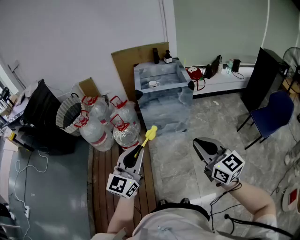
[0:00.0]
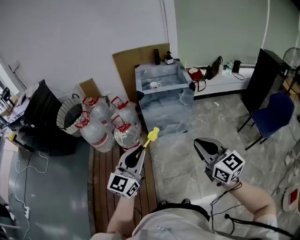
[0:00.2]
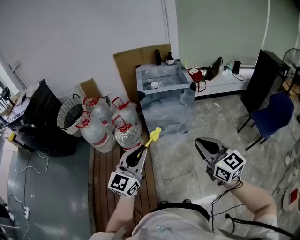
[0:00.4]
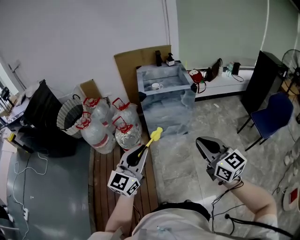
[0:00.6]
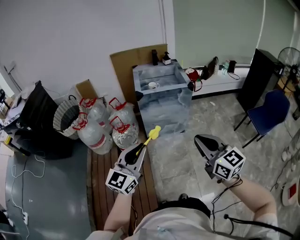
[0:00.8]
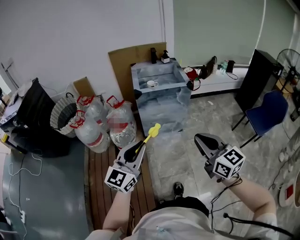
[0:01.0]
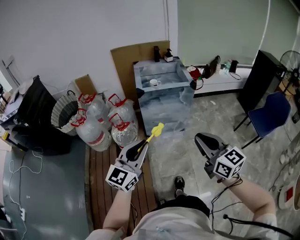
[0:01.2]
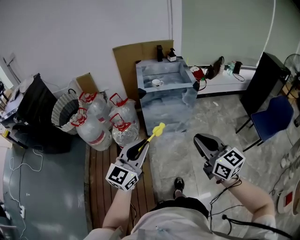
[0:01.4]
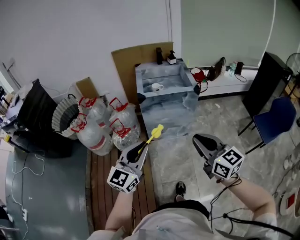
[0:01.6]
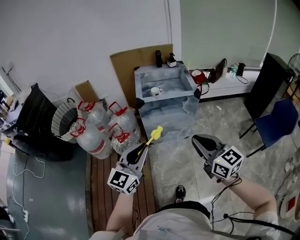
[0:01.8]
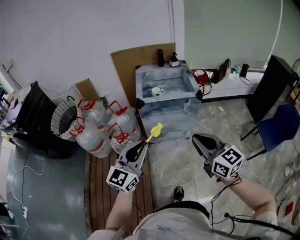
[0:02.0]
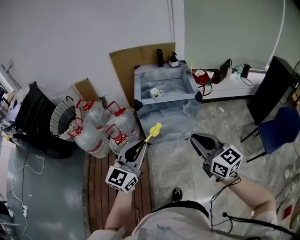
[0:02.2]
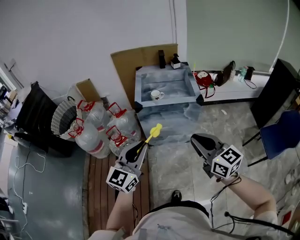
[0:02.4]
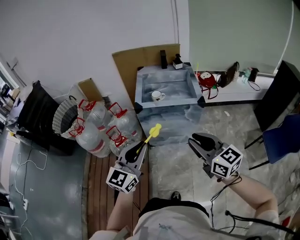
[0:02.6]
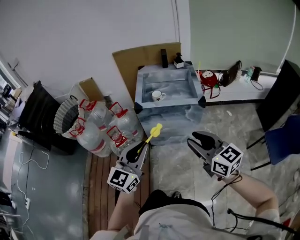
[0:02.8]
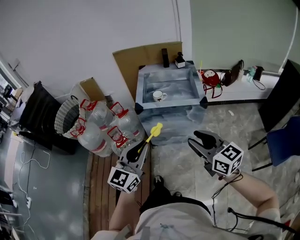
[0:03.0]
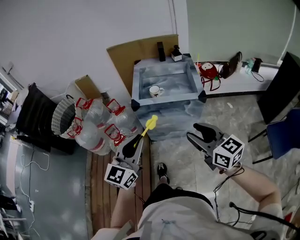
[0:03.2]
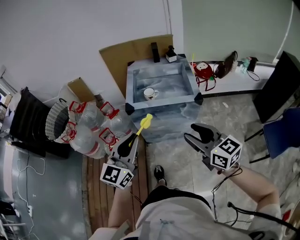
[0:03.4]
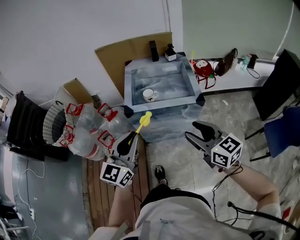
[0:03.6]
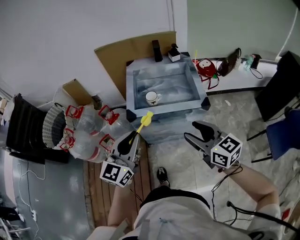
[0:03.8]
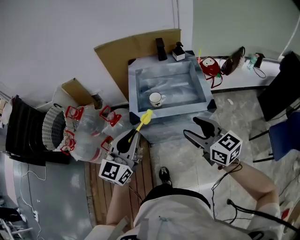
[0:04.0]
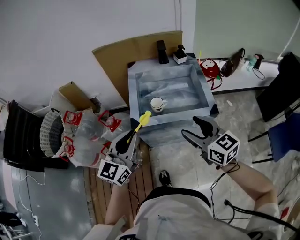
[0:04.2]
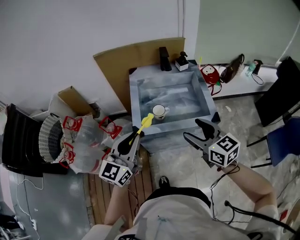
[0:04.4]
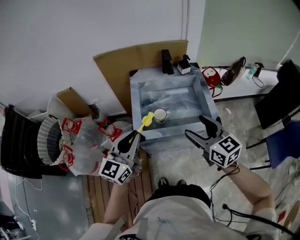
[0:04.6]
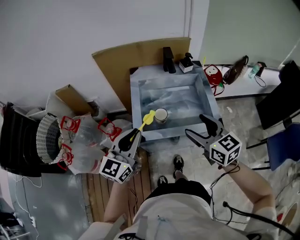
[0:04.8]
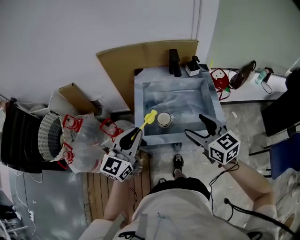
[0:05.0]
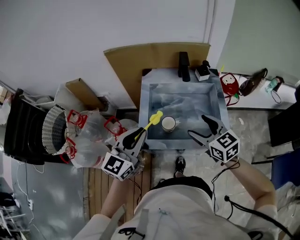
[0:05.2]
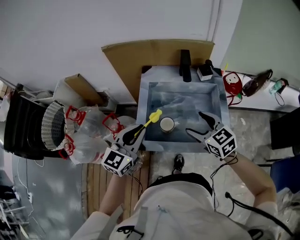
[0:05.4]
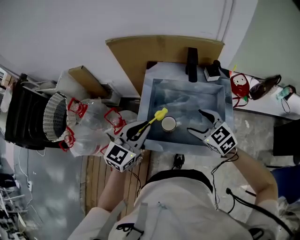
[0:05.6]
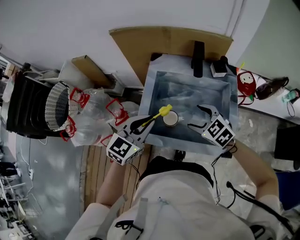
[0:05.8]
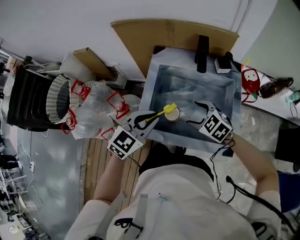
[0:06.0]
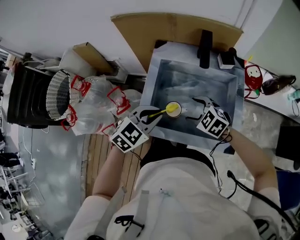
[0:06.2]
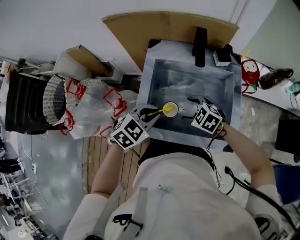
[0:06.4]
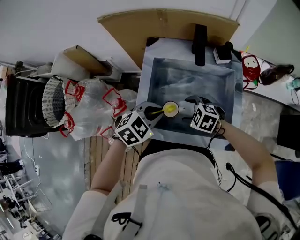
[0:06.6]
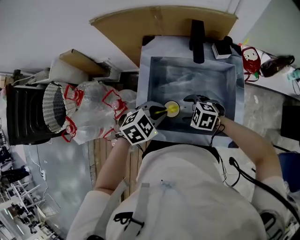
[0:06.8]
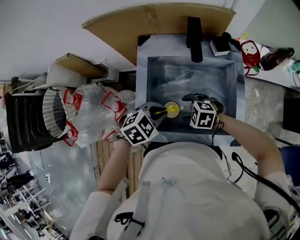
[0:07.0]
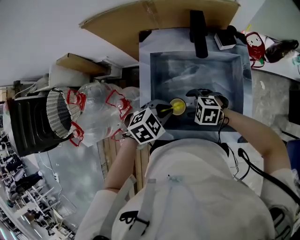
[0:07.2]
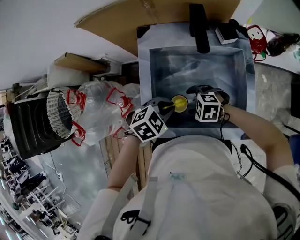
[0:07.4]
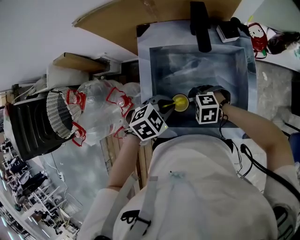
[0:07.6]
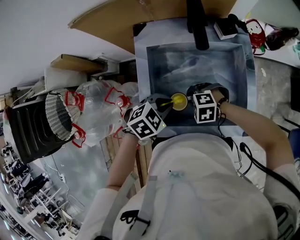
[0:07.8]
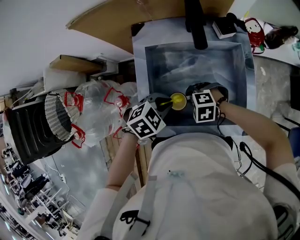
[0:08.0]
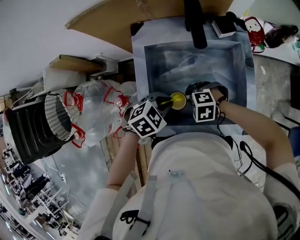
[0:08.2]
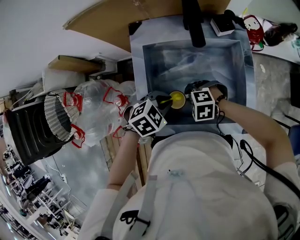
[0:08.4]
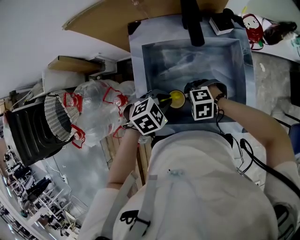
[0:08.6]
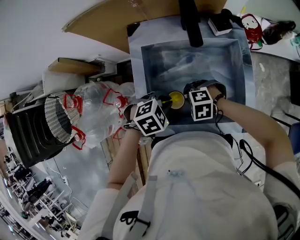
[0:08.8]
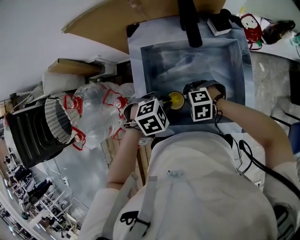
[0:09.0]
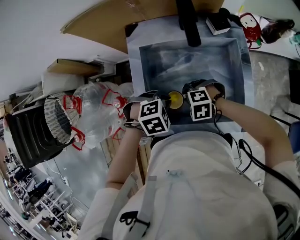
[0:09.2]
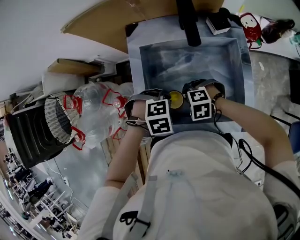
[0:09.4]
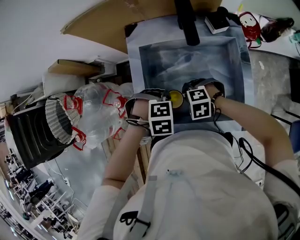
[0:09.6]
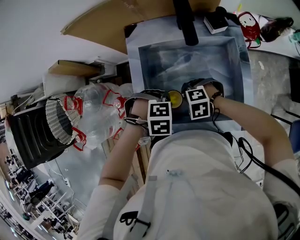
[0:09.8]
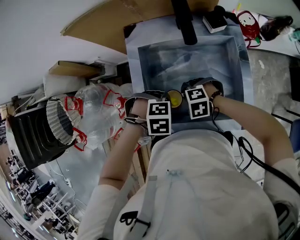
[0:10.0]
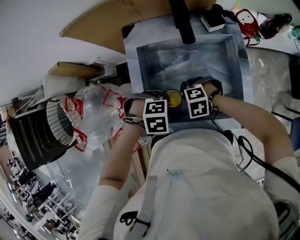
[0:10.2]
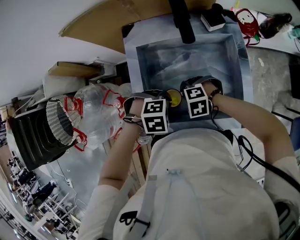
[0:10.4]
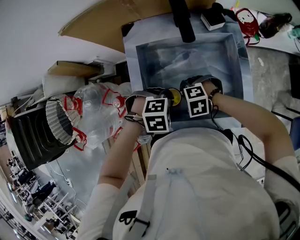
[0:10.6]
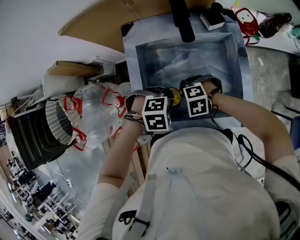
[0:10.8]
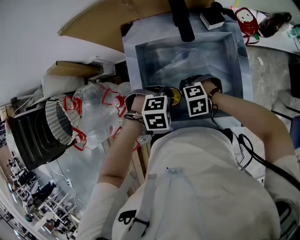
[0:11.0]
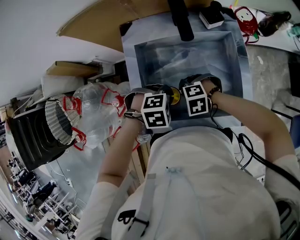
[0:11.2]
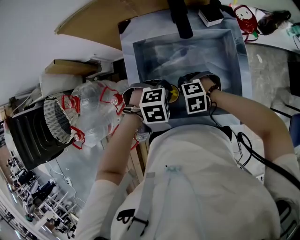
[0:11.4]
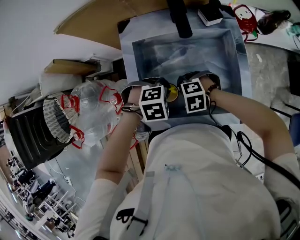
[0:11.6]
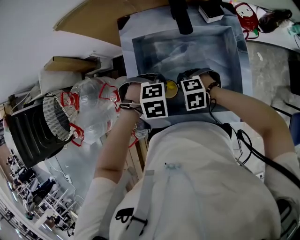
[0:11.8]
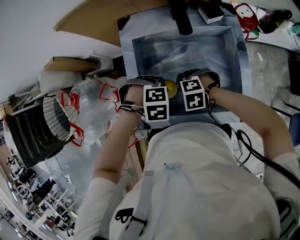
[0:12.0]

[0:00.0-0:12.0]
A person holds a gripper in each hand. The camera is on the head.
0.0 to 1.6 s: The two grippers go roughly 10 cm forward.
1.6 to 3.0 s: The grippers both shift forward and to the right by some 20 cm. The right gripper opens.
3.0 to 4.4 s: Both grippers travel together forward, about 25 cm. The right gripper opens up.
4.4 to 6.0 s: The right gripper heads forward and downward, covering approximately 25 cm, and tips its fingers downward by approximately 30 degrees. The left gripper heads forward, downward and to the right, covering about 20 cm, and rotates roughly 30 degrees.
6.0 to 7.6 s: The grippers both shift downward by some 15 cm. The left gripper tips its fingers downward by roughly 30 degrees. Meanwhile the right gripper changes its angle by some 30 degrees, and closes.
7.6 to 9.0 s: The grippers stay close to where they were, moving slightly.
10.4 to 12.0 s: There are only small adjustments of the grippers.

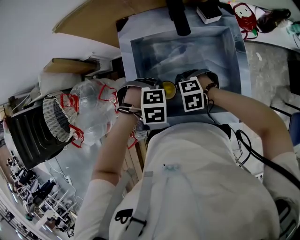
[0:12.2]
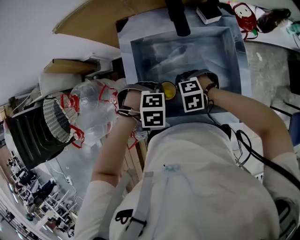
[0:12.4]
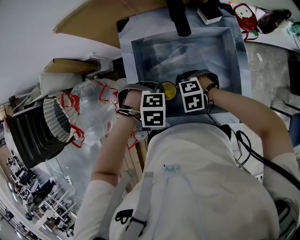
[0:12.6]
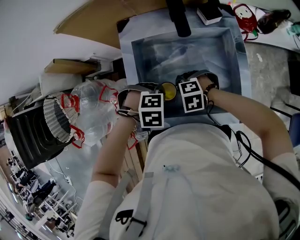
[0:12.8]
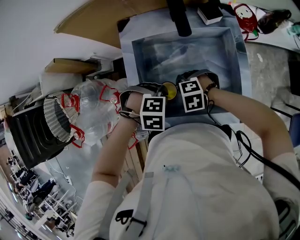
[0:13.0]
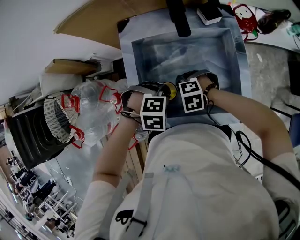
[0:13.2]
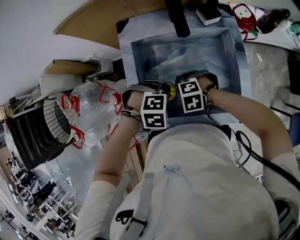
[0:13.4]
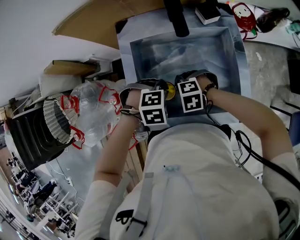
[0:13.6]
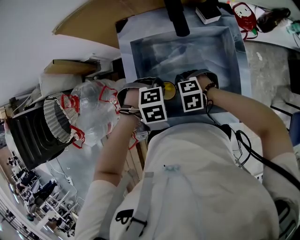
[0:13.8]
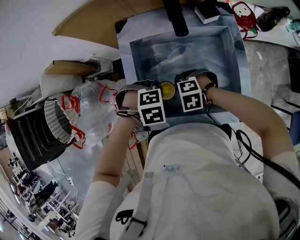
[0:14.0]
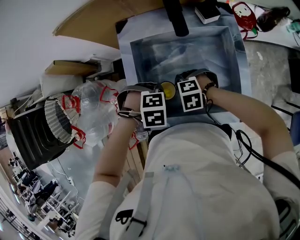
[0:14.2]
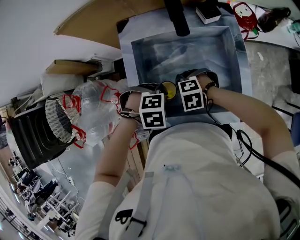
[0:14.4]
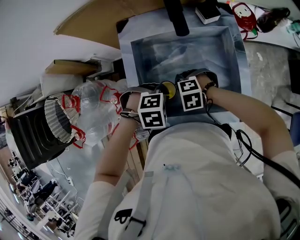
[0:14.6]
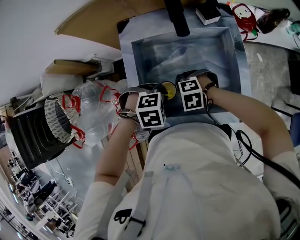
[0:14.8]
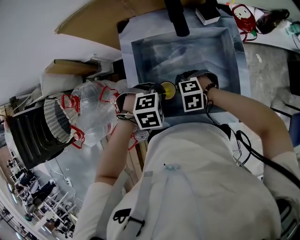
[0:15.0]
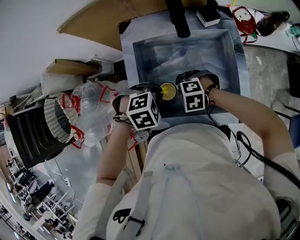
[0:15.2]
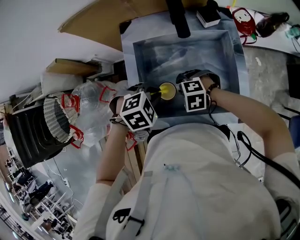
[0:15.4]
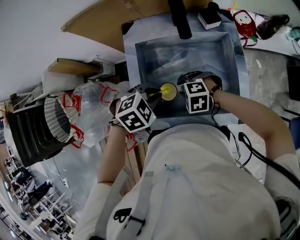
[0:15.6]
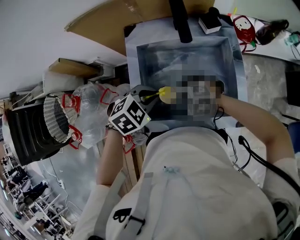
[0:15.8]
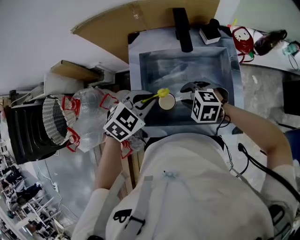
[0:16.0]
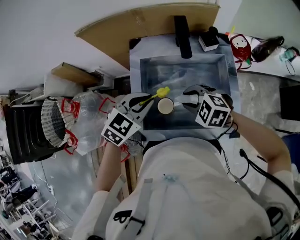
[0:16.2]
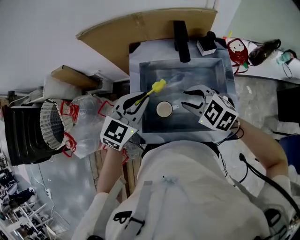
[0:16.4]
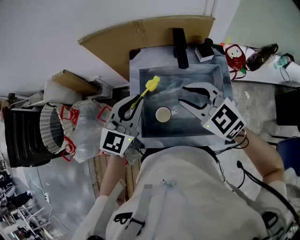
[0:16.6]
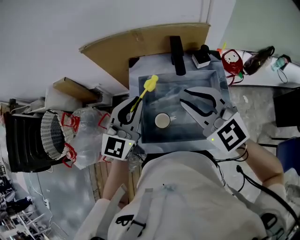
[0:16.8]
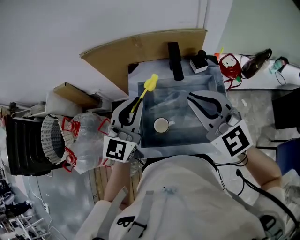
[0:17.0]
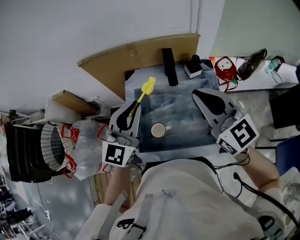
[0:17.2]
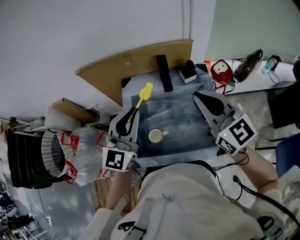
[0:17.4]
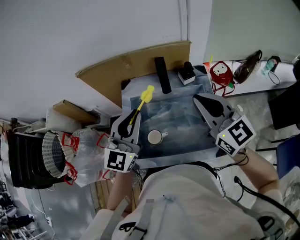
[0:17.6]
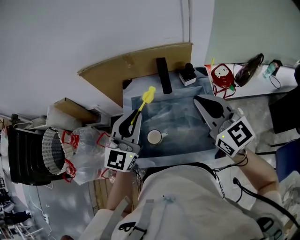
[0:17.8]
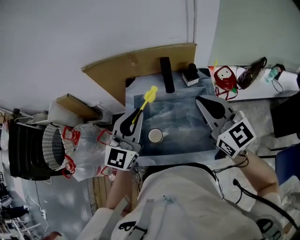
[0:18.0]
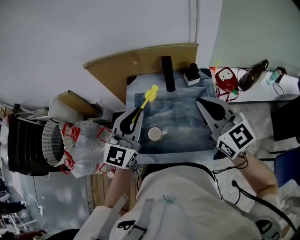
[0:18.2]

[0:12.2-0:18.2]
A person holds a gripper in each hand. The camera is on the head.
12.2 to 15.2 s: The grippers move only a little.
15.2 to 16.6 s: Both grippers move upward, some 25 cm. The left gripper tips its fingers upward by about 60 degrees. Meanwhile the right gripper points its fingers roughly 40 degrees further upward.
16.6 to 18.2 s: The right gripper heads to the right and upward, covering roughly 15 cm, changes its angle by some 30 degrees, and closes its fingers, while the left gripper goes approximately 5 cm upward.

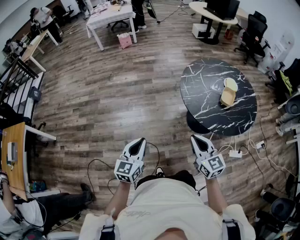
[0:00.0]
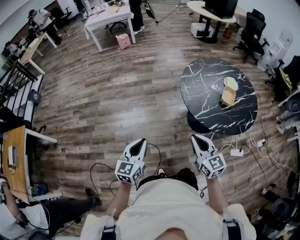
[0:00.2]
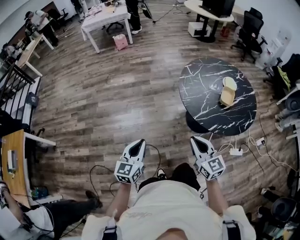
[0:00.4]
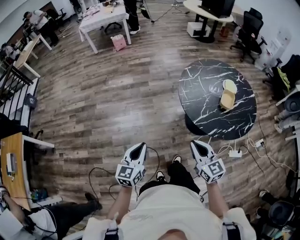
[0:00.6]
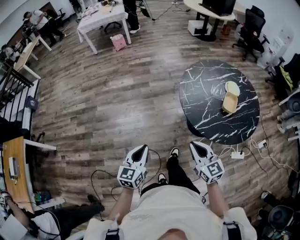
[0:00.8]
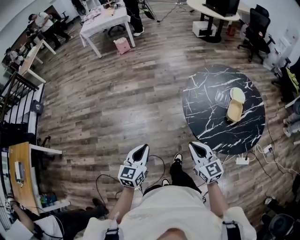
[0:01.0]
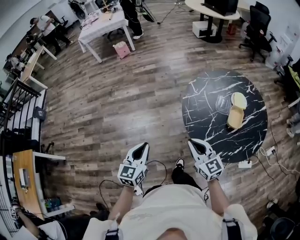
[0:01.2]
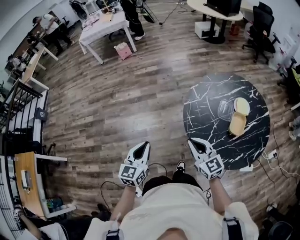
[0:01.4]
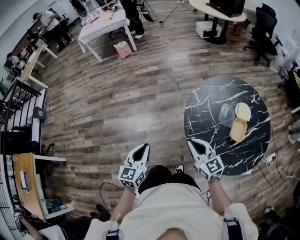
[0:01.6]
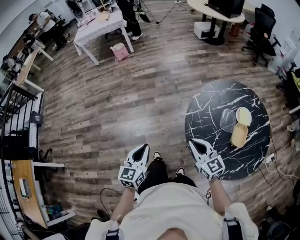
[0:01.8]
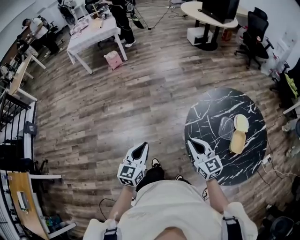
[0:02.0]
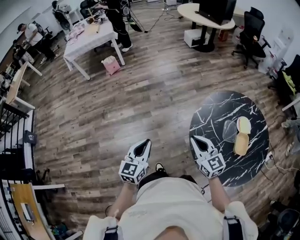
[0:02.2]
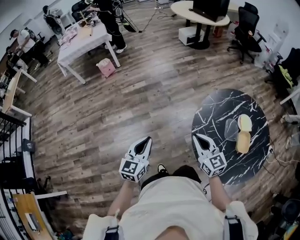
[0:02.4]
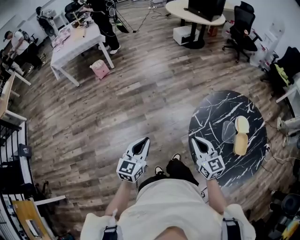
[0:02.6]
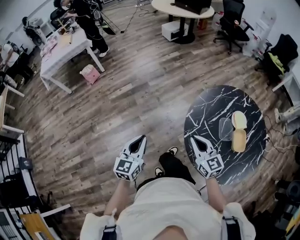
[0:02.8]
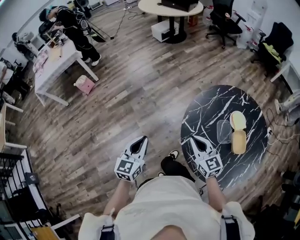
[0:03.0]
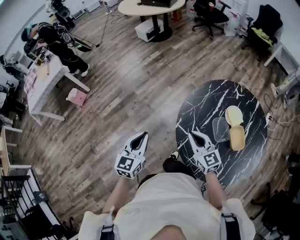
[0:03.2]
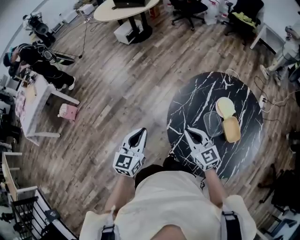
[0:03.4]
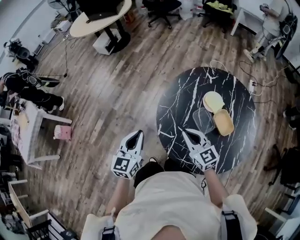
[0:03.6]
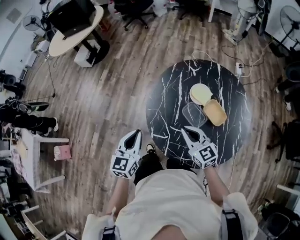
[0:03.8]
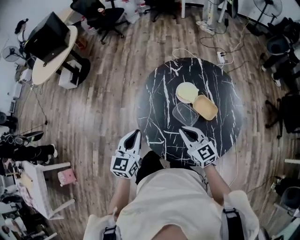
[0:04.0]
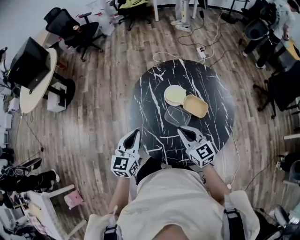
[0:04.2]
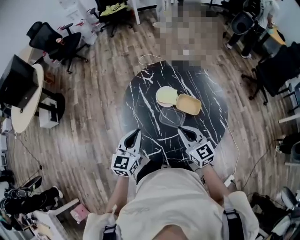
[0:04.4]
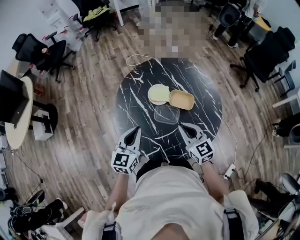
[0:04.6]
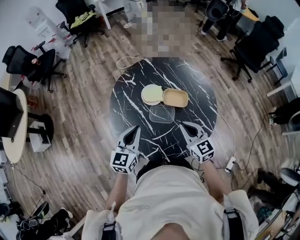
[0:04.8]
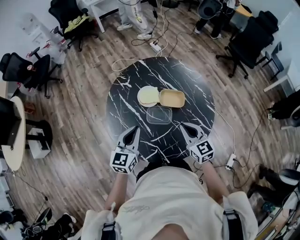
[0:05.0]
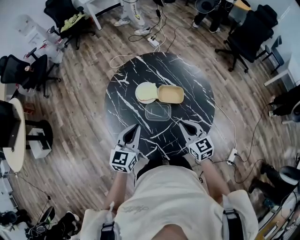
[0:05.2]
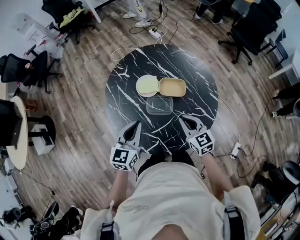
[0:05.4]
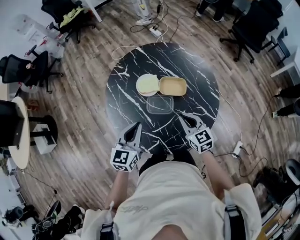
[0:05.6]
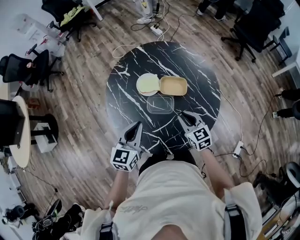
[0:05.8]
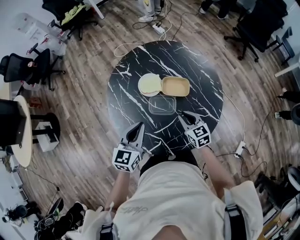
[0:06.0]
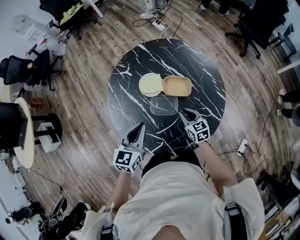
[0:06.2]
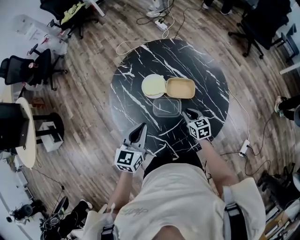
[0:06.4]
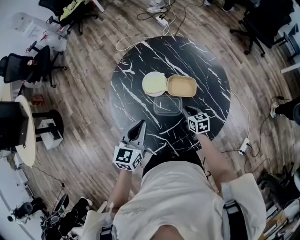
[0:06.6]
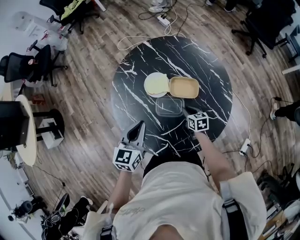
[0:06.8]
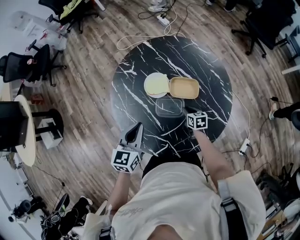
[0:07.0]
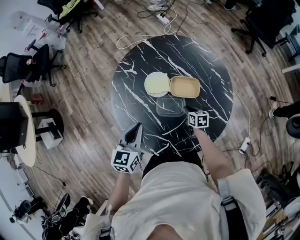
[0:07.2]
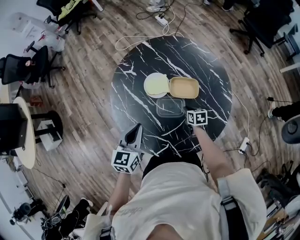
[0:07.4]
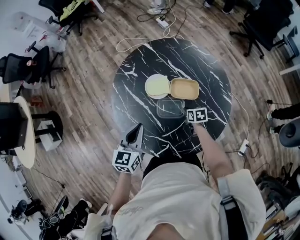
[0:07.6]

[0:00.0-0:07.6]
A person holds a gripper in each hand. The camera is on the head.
0.0 to 1.6 s: The two grippers go about 30 cm forward.
1.6 to 3.0 s: The left gripper shifts by roughly 35 cm, and swivels some 30 degrees, while the right gripper changes place by roughly 25 cm, and changes its angle by roughly 30 degrees.
3.0 to 4.6 s: The right gripper ends up some 20 cm from where it was, and turns by approximately 70 degrees, while the left gripper ends up some 40 cm from where it was, and changes its angle by approximately 70 degrees.
4.6 to 6.0 s: The left gripper goes roughly 5 cm to the right. The right gripper moves downward, about 10 cm.
6.0 to 7.6 s: The right gripper moves downward, about 15 cm, and turns by some 40 degrees, while the left gripper moves some 5 cm.
